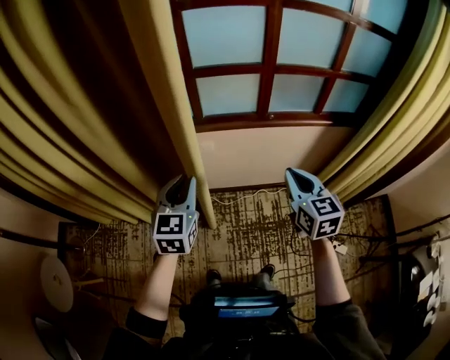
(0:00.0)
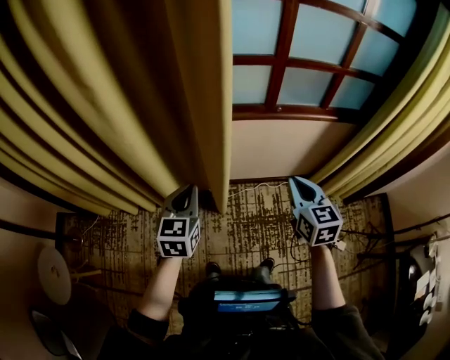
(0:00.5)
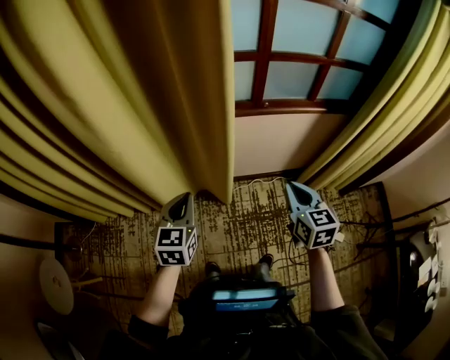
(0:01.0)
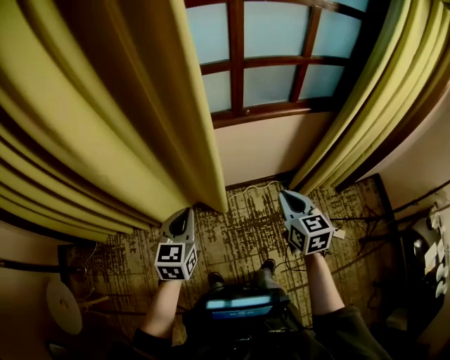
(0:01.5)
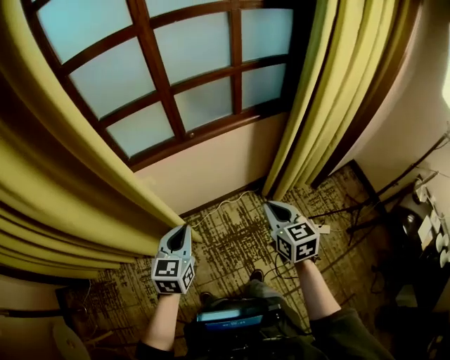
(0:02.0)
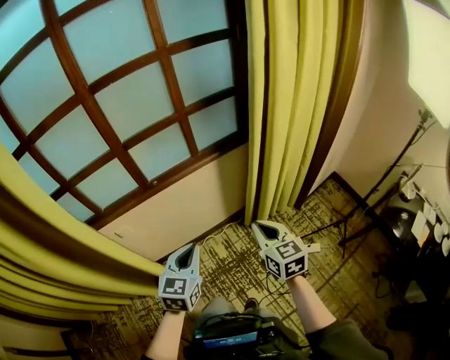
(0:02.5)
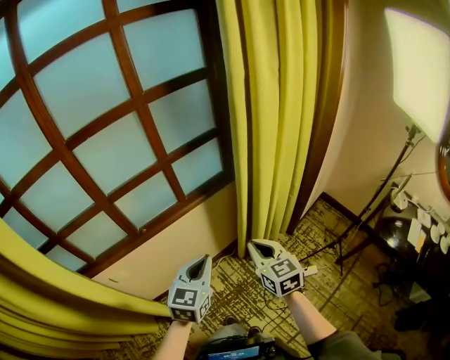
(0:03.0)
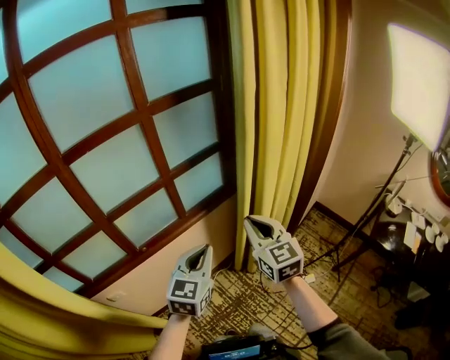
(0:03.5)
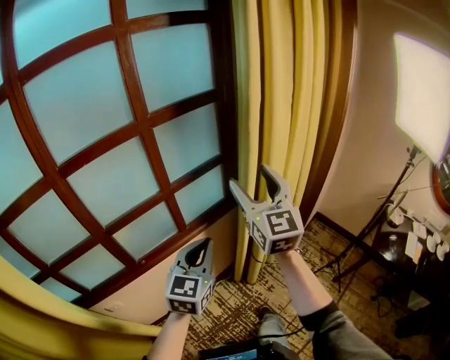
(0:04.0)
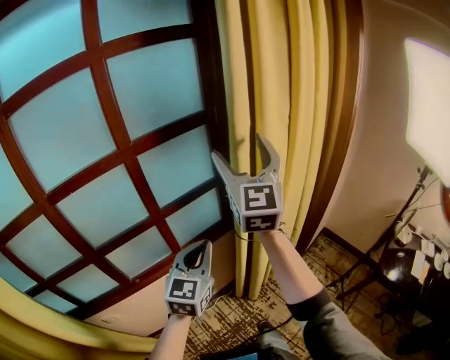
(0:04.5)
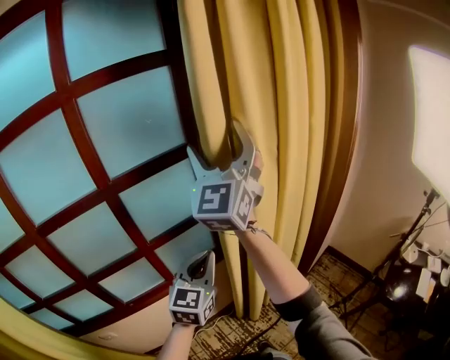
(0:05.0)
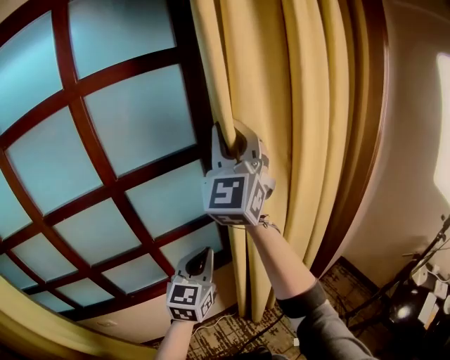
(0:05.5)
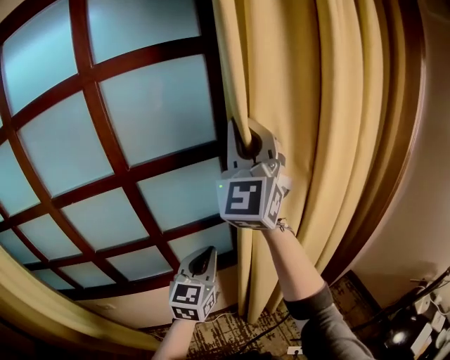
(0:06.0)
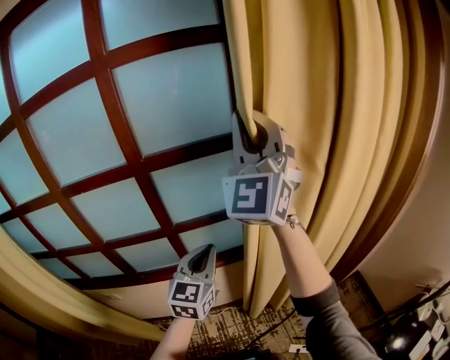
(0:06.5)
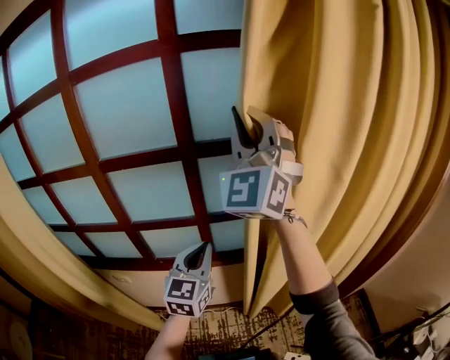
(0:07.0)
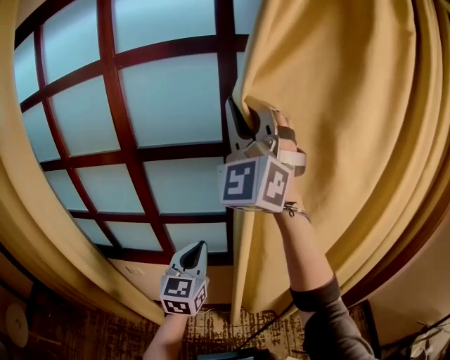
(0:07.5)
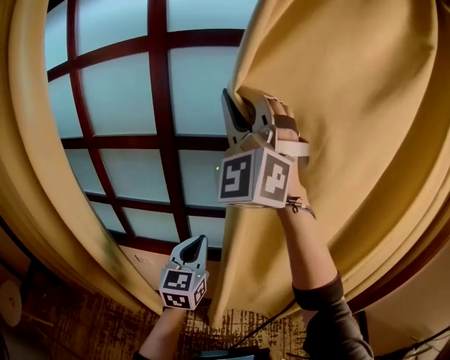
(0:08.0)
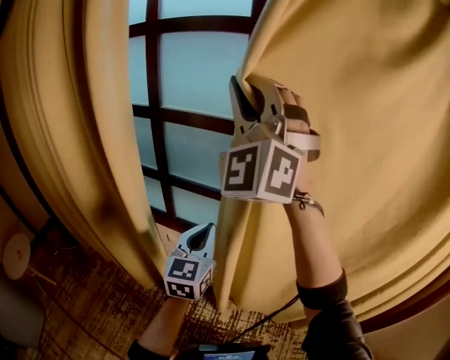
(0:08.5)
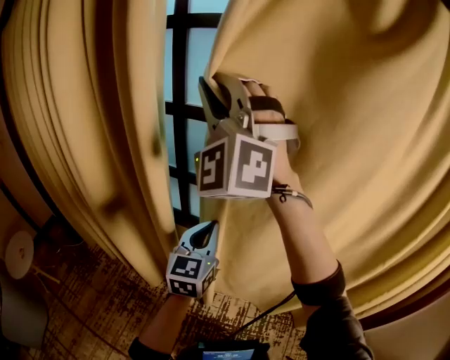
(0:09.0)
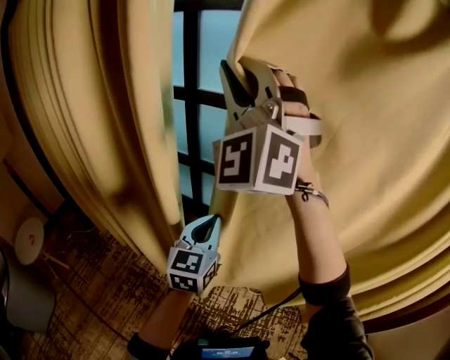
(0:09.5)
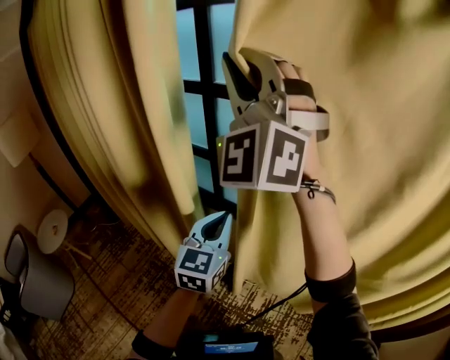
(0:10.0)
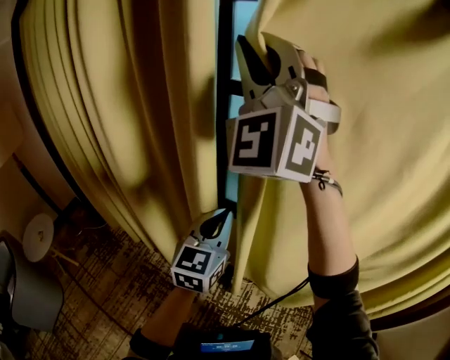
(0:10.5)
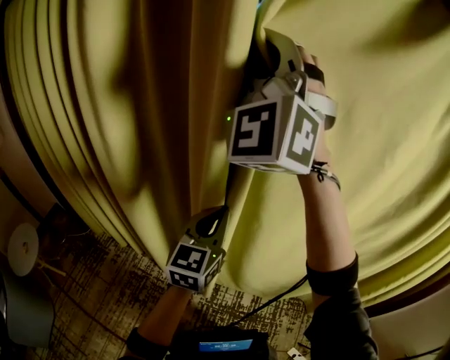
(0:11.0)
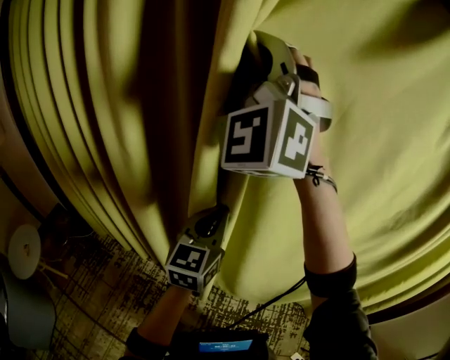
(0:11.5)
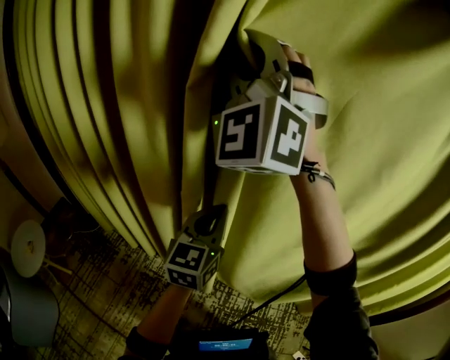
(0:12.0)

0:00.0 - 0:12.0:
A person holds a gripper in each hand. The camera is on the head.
0:00.0 - 0:02.0: The right gripper goes roughly 20 cm to the right, downward and backward. Meanwhile the left gripper is displaced to the right and downward by roughly 20 cm, and changes its angle by approximately 20 degrees.
0:02.0 - 0:04.0: The left gripper changes place by approximately 40 cm, and rotates approximately 30 degrees, while the right gripper changes place by some 50 cm, tips its fingers upward by about 40 degrees, and opens.
0:04.0 - 0:06.0: The right gripper heads upward and forward, covering about 30 cm, turns by roughly 30 degrees, and closes up. The left gripper goes approximately 20 cm forward and to the right, and turns by approximately 20 degrees.
0:06.0 - 0:08.0: The left gripper ends up roughly 35 cm from where it was, and changes its angle by some 30 degrees, while the right gripper shifts by about 40 cm, and rotates about 30 degrees.
0:08.0 - 0:10.0: The grippers both shift to the left by roughly 25 cm. The right gripper swivels approximately 20 degrees.
0:10.0 - 0:12.0: Both grippers move to the left, approximately 25 cm.

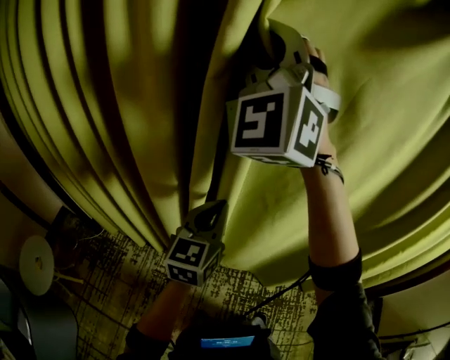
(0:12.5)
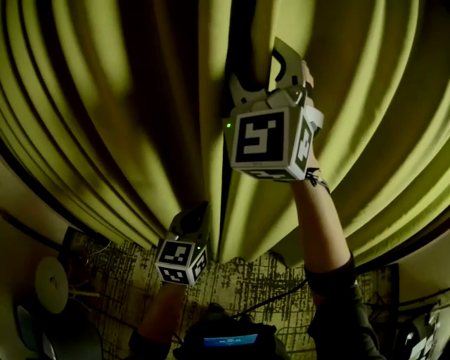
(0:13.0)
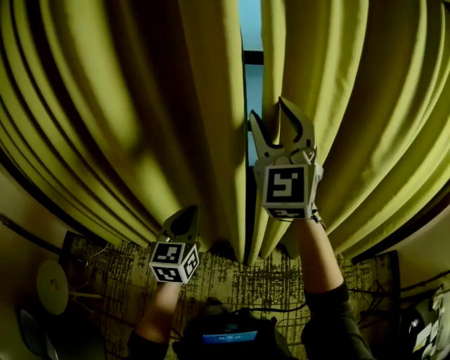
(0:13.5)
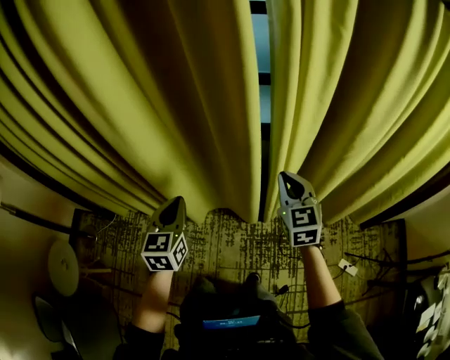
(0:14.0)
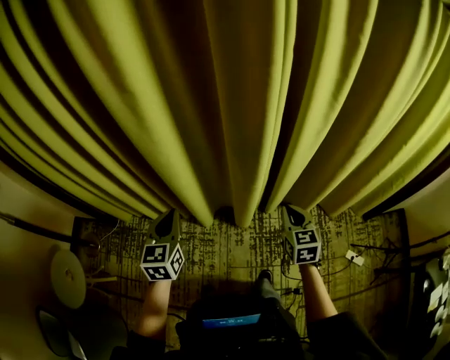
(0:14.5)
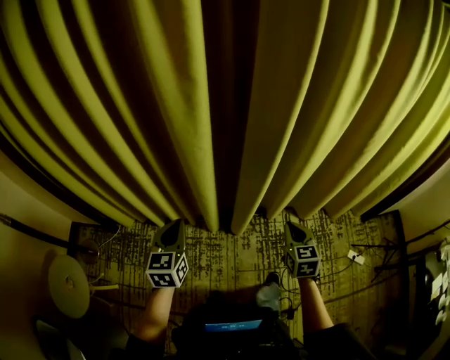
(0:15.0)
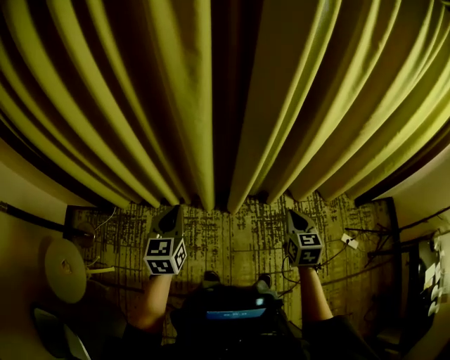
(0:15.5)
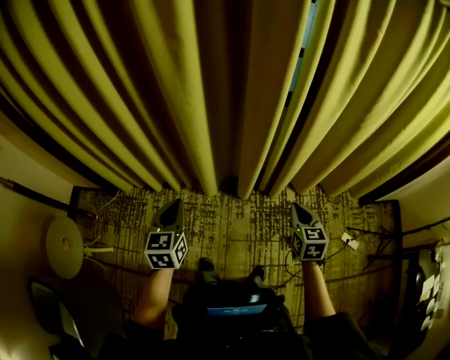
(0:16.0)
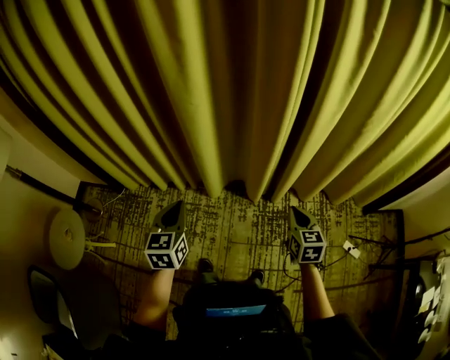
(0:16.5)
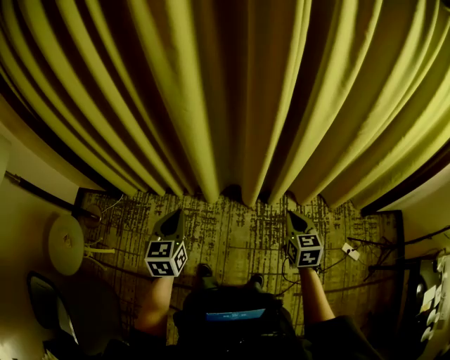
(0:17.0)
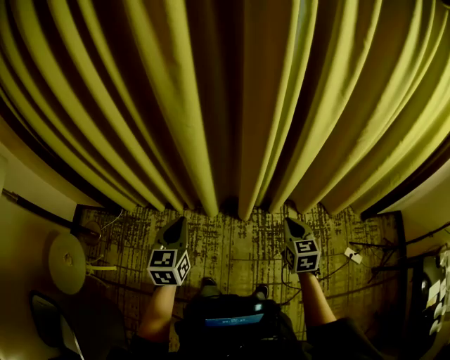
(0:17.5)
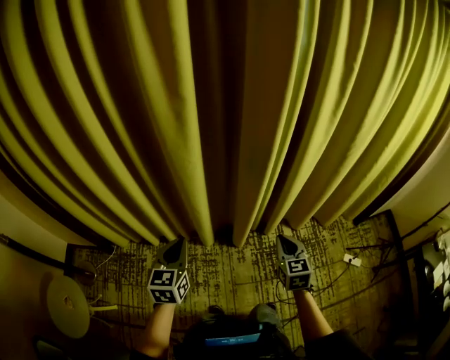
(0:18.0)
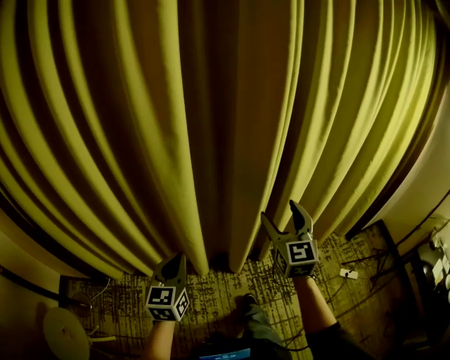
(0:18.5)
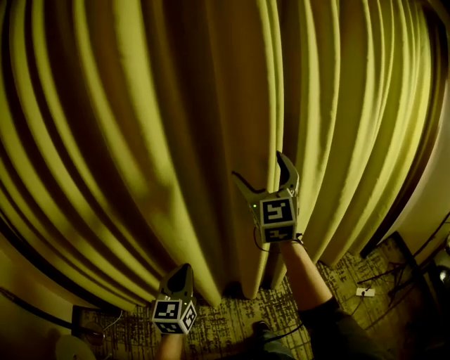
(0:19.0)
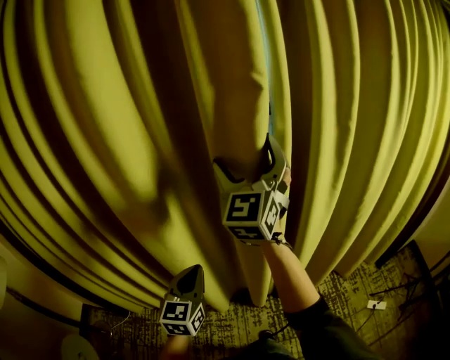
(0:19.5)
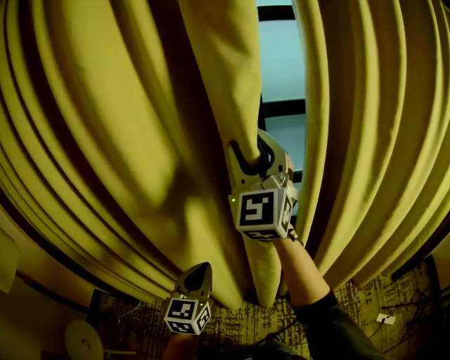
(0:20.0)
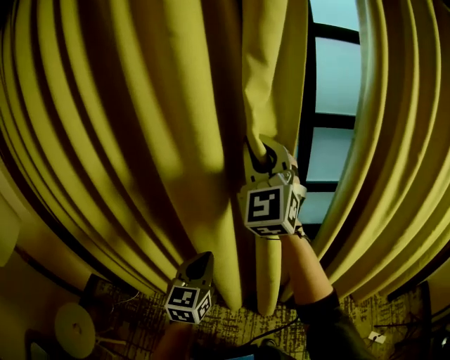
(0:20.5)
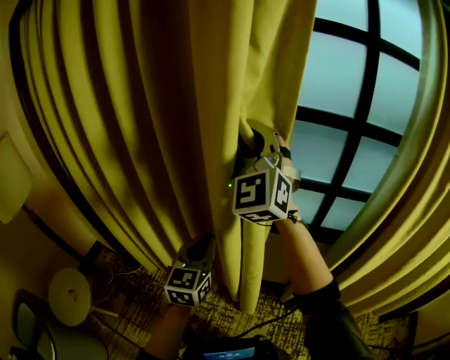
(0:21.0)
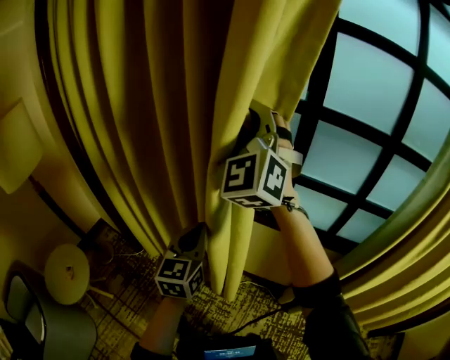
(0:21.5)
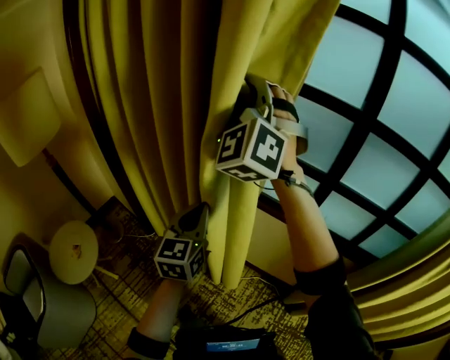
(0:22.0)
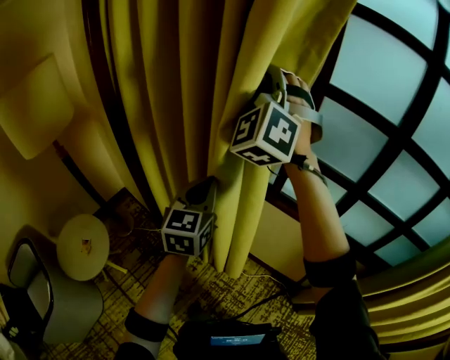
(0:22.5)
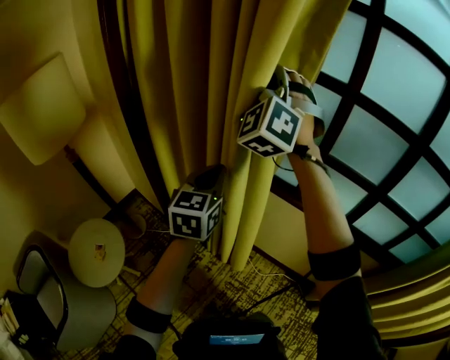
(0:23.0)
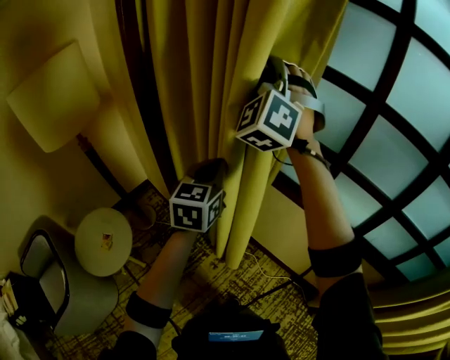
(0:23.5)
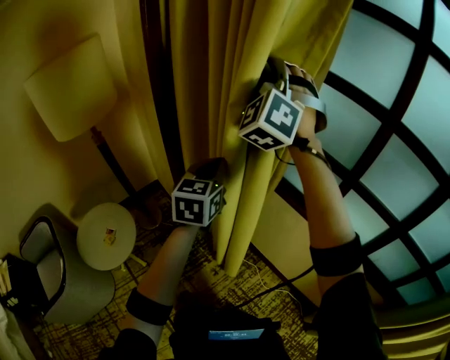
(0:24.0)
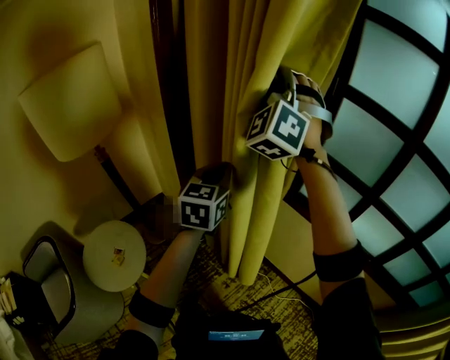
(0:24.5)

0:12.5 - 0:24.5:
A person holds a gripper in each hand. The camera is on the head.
0:12.5 - 0:14.5: The right gripper goes some 70 cm downward, backward and to the right, angles its fingers downward, by roughly 50 degrees, and opens, then closes again; the left gripper shifts roughly 25 cm backward, downward and to the left.
0:14.5 - 0:16.5: Both grippers travel together backward, about 15 cm.
0:16.5 - 0:18.5: The left gripper travels forward, upward and to the left by approximately 15 cm; the right gripper moves upward, forward and to the left, some 30 cm, changes its angle by some 30 degrees, and opens its fingers.
0:18.5 - 0:20.5: The right gripper shifts some 40 cm upward, forward and to the left, rotates some 40 degrees, and closes. Meanwhile the left gripper heads forward, covering some 20 cm.
0:20.5 - 0:22.5: Both grippers are carried to the left, about 50 cm. The left gripper changes its angle by roughly 30 degrees. The right gripper turns by approximately 30 degrees.
0:22.5 - 0:24.5: Both grippers travel together to the left and forward, roughly 30 cm.

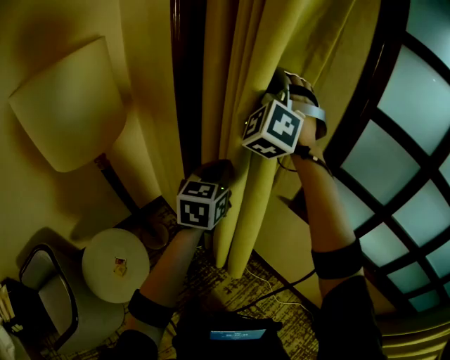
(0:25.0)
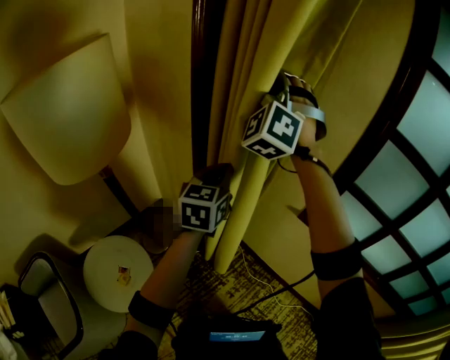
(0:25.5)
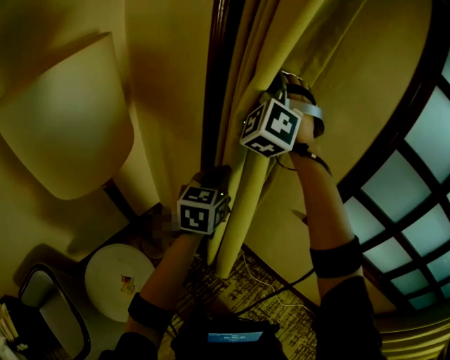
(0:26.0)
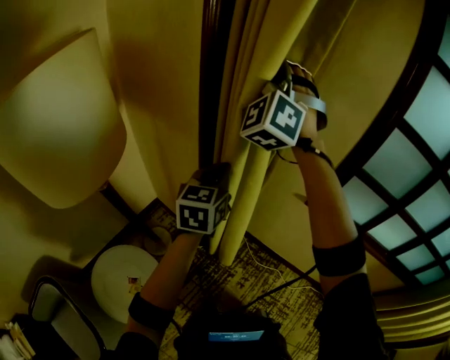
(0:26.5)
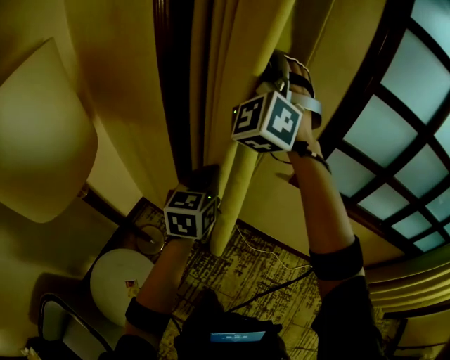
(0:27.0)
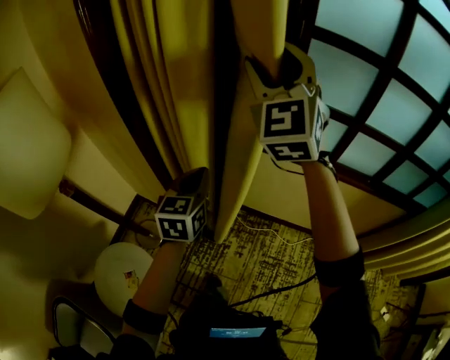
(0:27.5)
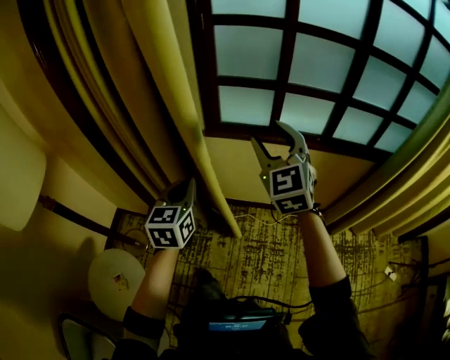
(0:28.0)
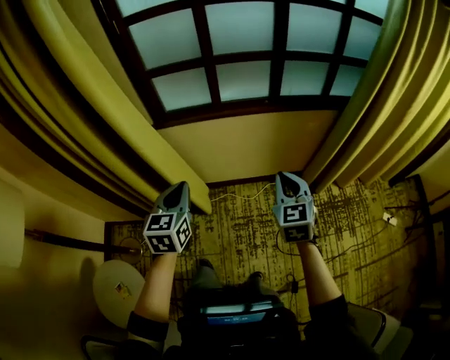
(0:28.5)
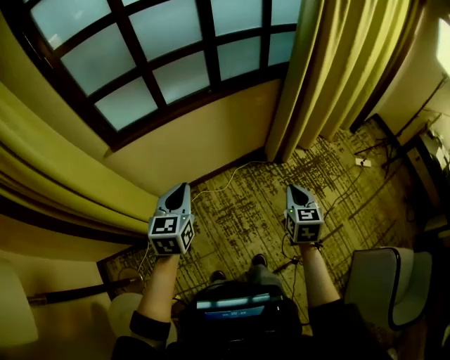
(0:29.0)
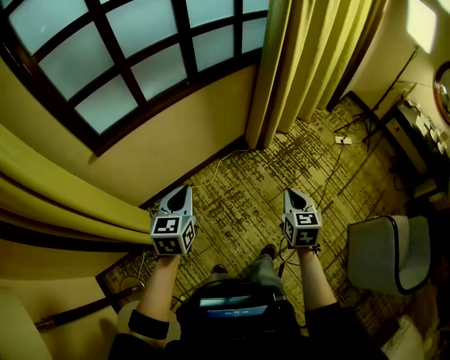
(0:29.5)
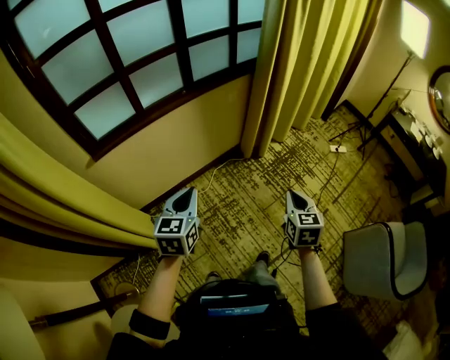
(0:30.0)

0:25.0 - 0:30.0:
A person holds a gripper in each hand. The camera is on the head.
0:25.0 - 0:27.5: The left gripper travels downward and backward by some 10 cm, and travels to the left and back again, about 10 cm each way. The right gripper travels to the right and backward by about 15 cm, rotates about 30 degrees, and opens.
0:27.5 - 0:30.0: The two grippers travel together, roughly 60 cm. The left gripper changes its angle by some 50 degrees. The right gripper angles its fingers downward, by approximately 40 degrees, and closes.
